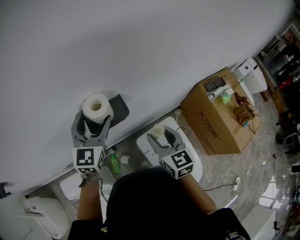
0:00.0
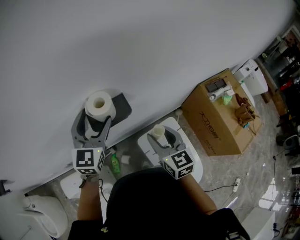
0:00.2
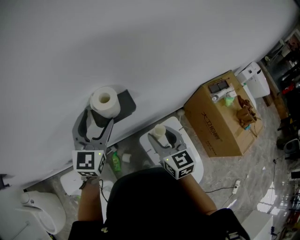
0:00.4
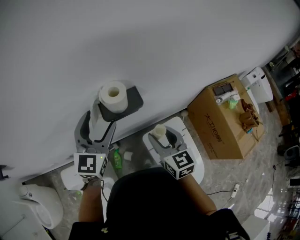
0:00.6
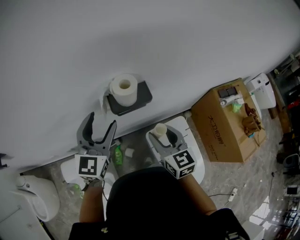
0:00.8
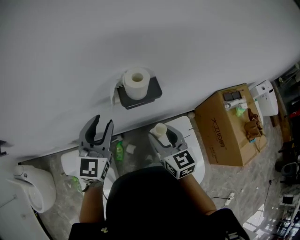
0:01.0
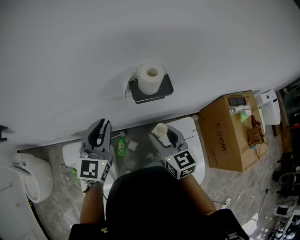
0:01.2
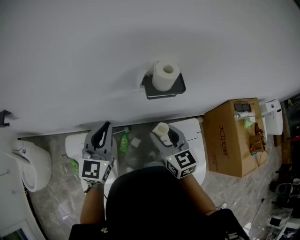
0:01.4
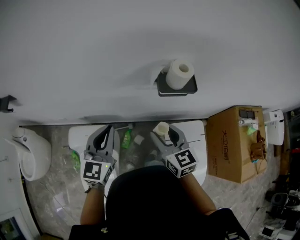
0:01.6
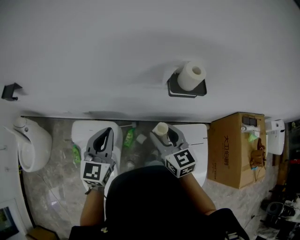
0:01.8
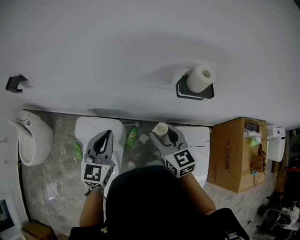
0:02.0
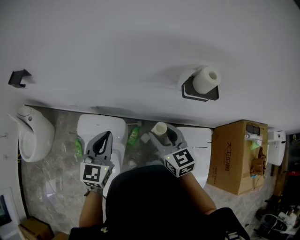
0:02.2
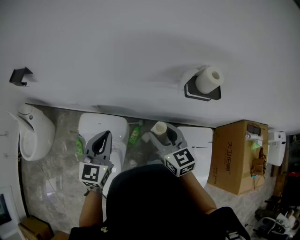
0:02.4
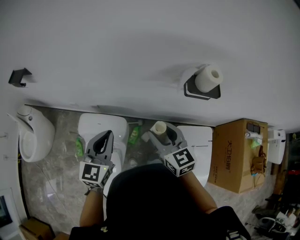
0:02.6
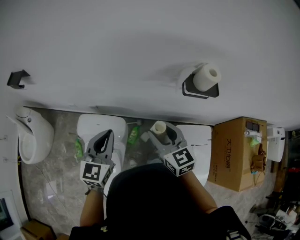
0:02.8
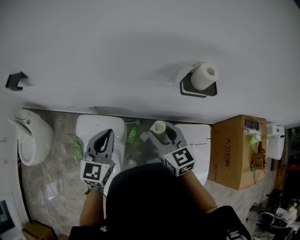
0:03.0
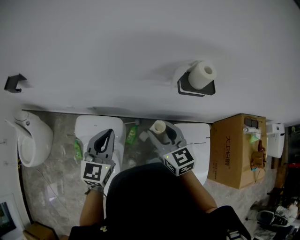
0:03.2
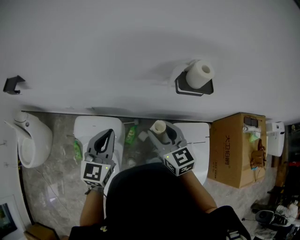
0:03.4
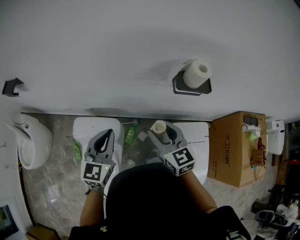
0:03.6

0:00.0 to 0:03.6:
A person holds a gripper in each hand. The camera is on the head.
0:00.0 to 0:01.8: The left gripper ends up approximately 35 cm from where it was, turns by approximately 30 degrees, and closes; the right gripper moves roughly 30 cm, and turns by approximately 30 degrees.
0:01.8 to 0:03.6: The left gripper moves approximately 10 cm to the left and comes back.

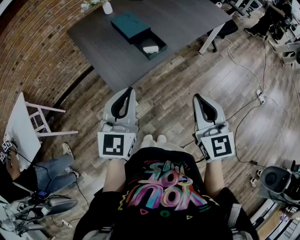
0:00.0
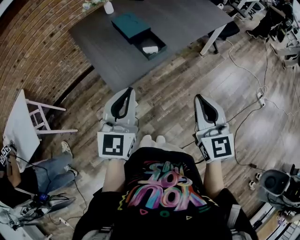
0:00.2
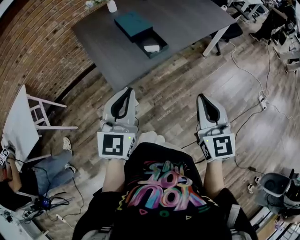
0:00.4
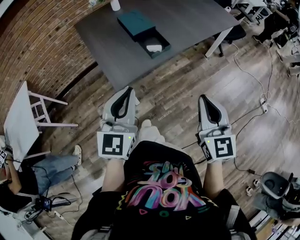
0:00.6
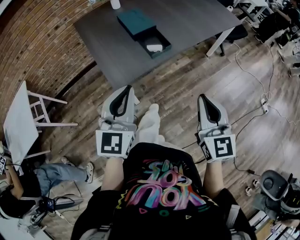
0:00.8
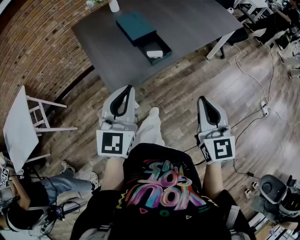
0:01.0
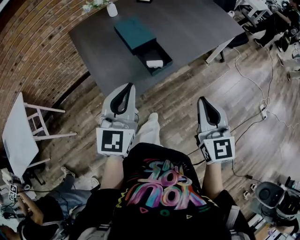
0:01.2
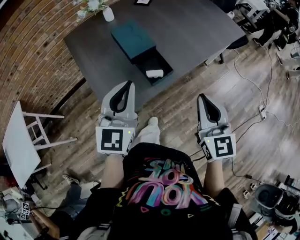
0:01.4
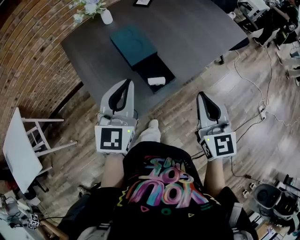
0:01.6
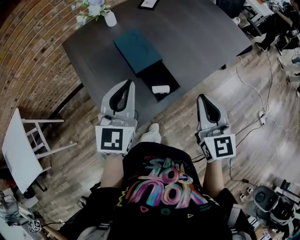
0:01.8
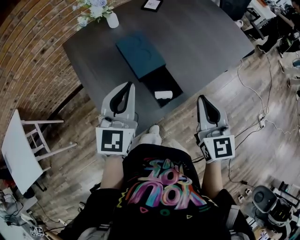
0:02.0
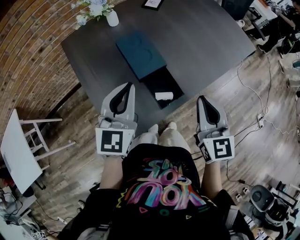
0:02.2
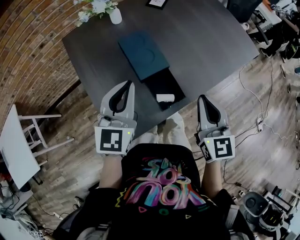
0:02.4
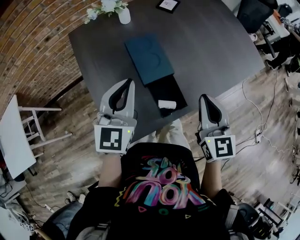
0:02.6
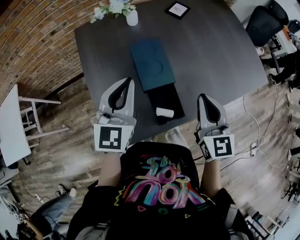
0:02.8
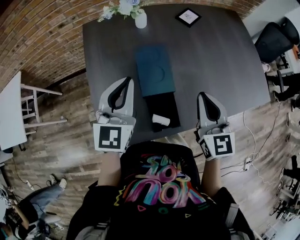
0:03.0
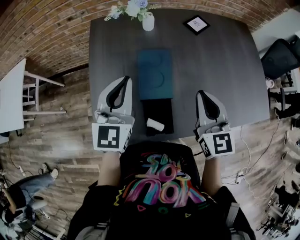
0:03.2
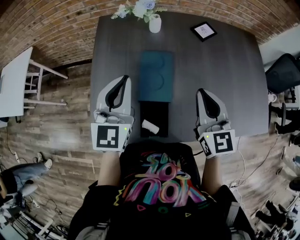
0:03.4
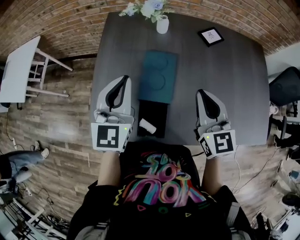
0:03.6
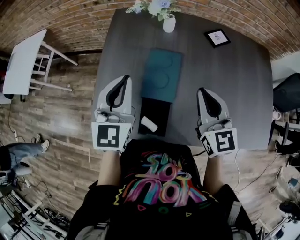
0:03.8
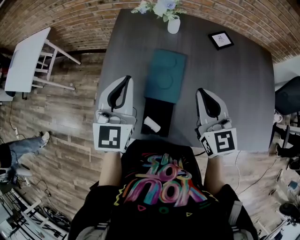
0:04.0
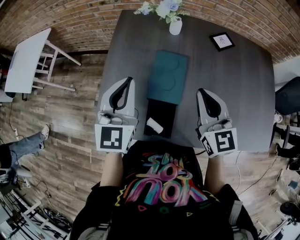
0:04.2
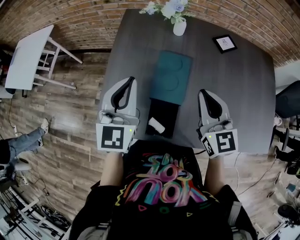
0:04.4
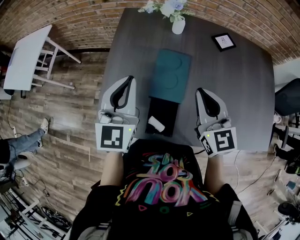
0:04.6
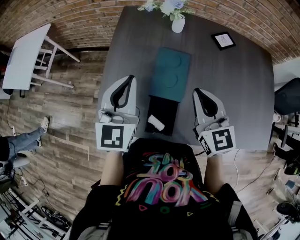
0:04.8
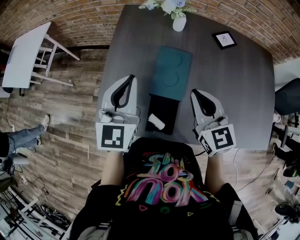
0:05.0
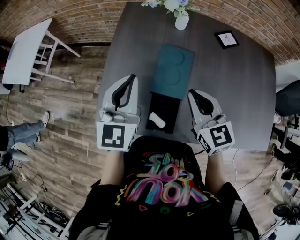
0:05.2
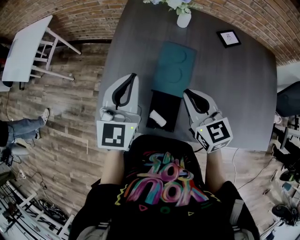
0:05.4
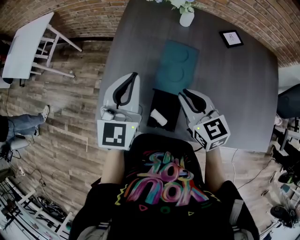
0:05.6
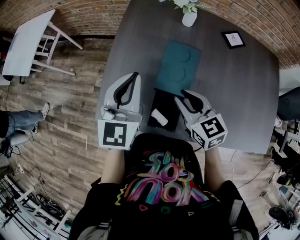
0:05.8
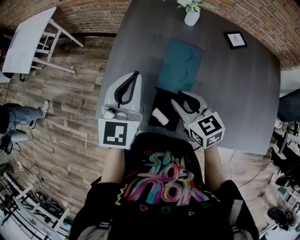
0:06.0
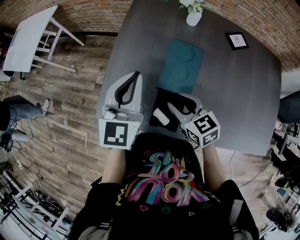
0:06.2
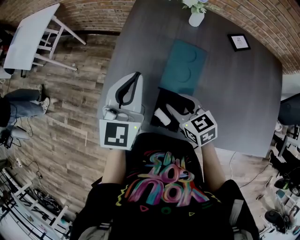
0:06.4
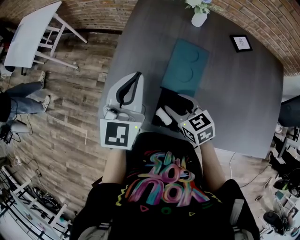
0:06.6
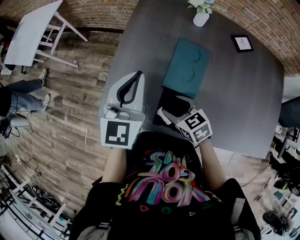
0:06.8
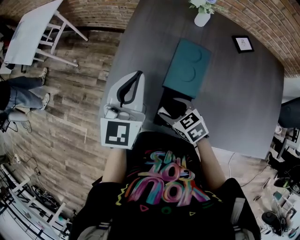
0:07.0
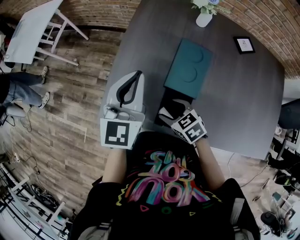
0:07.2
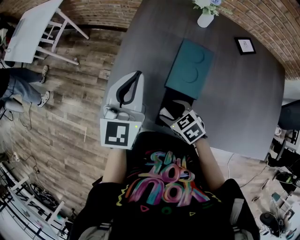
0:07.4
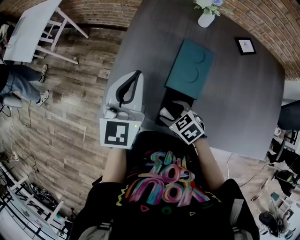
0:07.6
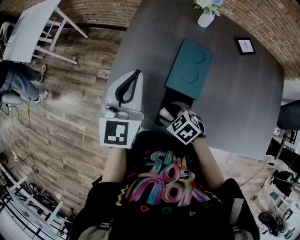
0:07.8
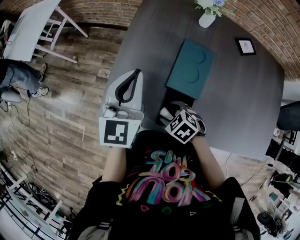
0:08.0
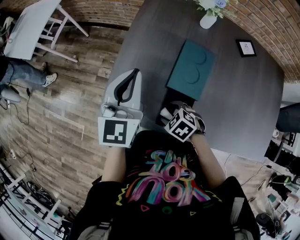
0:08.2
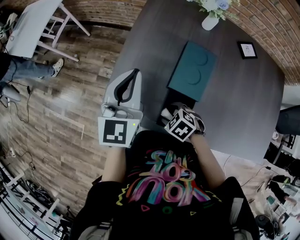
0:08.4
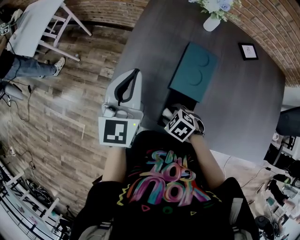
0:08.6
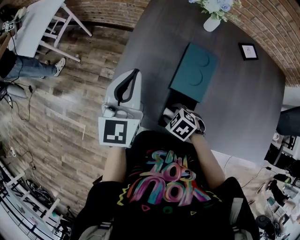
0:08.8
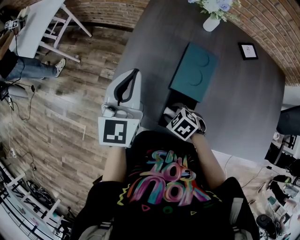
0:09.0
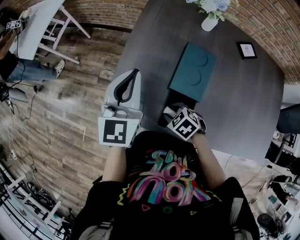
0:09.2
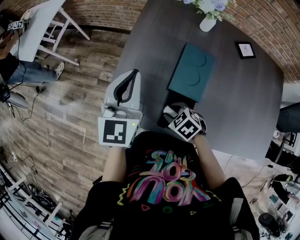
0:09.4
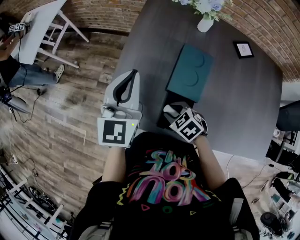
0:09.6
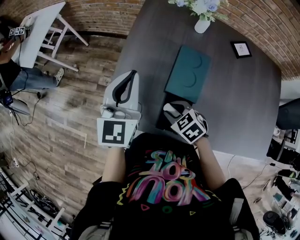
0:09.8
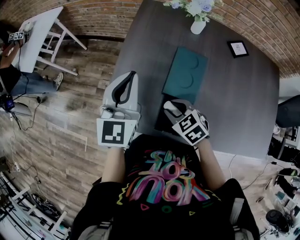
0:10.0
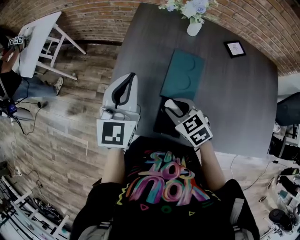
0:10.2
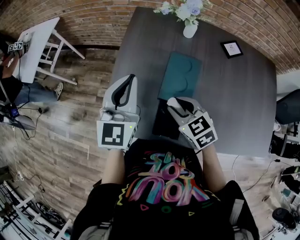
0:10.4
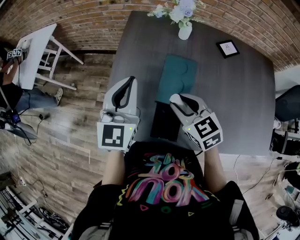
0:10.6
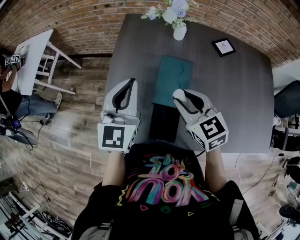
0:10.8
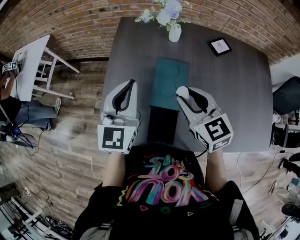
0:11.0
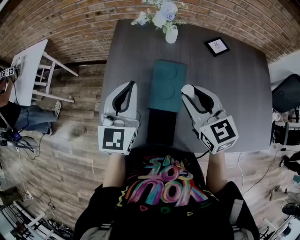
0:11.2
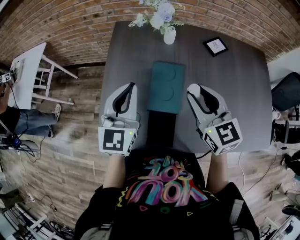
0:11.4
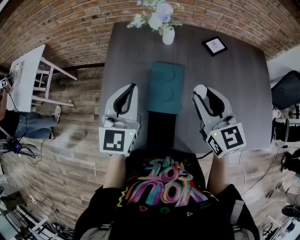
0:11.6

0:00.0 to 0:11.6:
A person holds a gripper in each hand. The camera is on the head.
0:00.0 to 0:01.4: Both grippers move forward, roughly 15 cm.
0:01.4 to 0:02.8: Both grippers travel together forward, some 20 cm.
0:02.8 to 0:04.4: The left gripper changes its angle by approximately 30 degrees; the right gripper changes place by approximately 15 cm, and swivels roughly 30 degrees.
0:04.4 to 0:05.8: The right gripper shifts roughly 15 cm downward and to the left, and swivels about 30 degrees.
0:05.8 to 0:07.2: The right gripper goes about 15 cm downward and to the left, changes its angle by roughly 30 degrees, and opens.
0:07.2 to 0:08.8: The right gripper shifts by some 5 cm, rotates some 20 degrees, and closes.
0:08.8 to 0:10.2: The right gripper shifts some 15 cm upward and forward, and changes its angle by approximately 30 degrees.
0:10.2 to 0:11.6: The left gripper shifts about 10 cm to the right, while the right gripper moves upward and to the right, about 25 cm, and tilts its fingers roughly 30 degrees upward.

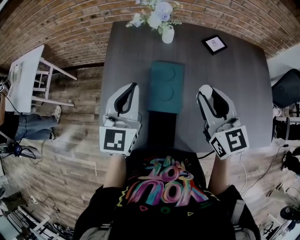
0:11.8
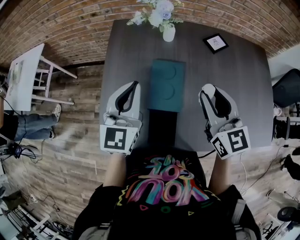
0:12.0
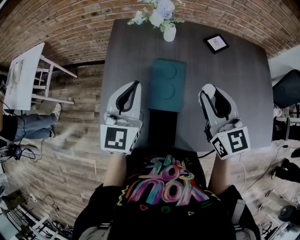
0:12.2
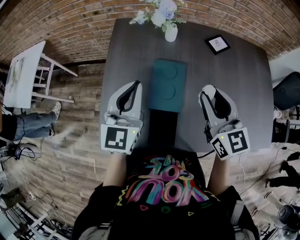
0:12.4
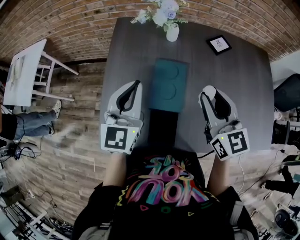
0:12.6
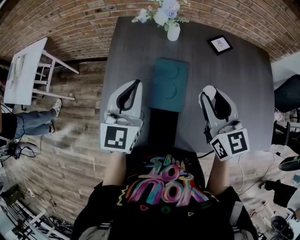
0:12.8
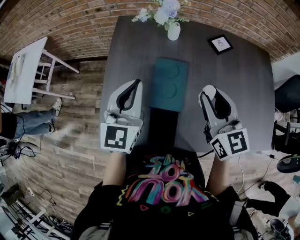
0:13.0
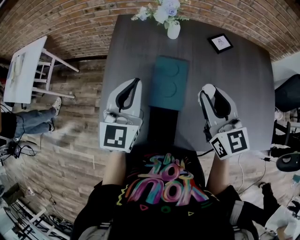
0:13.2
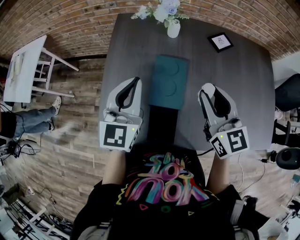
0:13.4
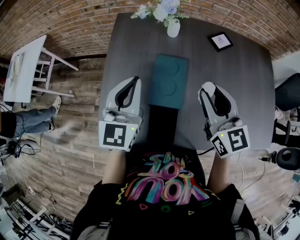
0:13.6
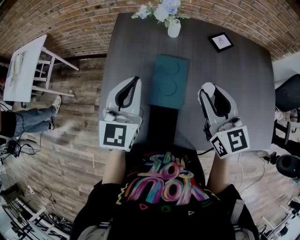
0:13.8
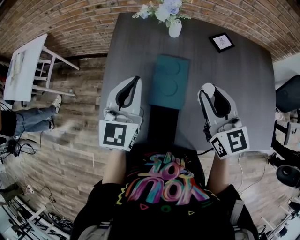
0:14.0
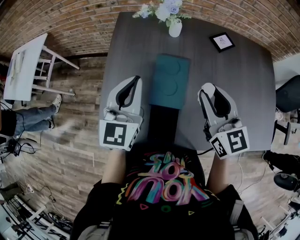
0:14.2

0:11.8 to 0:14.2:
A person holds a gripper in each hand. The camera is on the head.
0:11.8 to 0:14.2: Both grippers stay put.

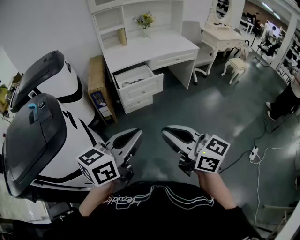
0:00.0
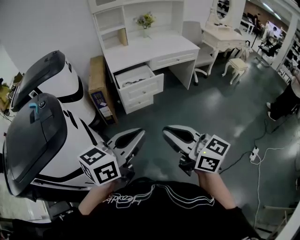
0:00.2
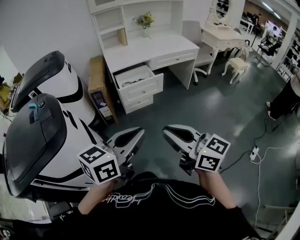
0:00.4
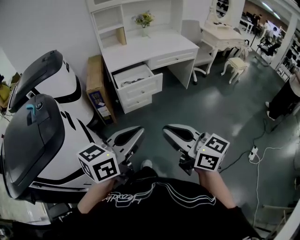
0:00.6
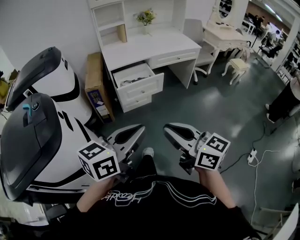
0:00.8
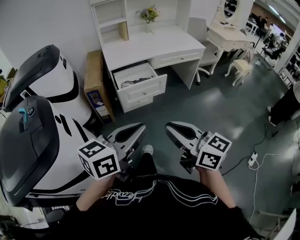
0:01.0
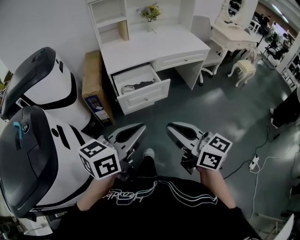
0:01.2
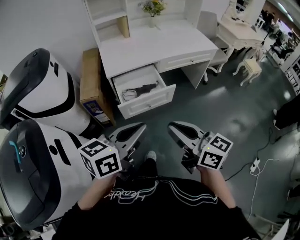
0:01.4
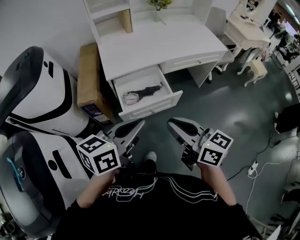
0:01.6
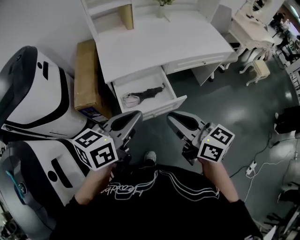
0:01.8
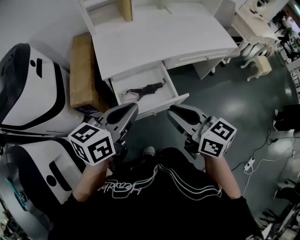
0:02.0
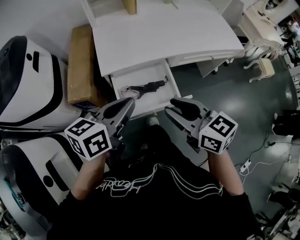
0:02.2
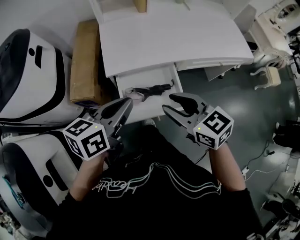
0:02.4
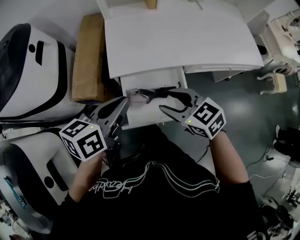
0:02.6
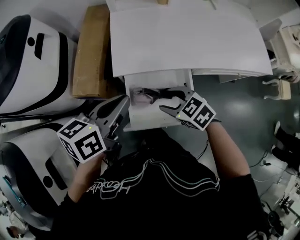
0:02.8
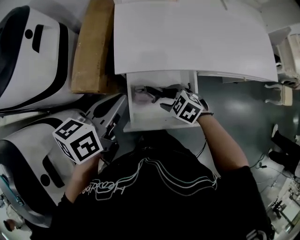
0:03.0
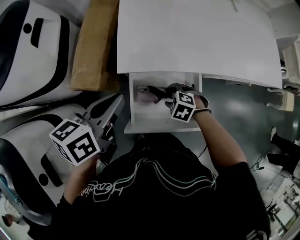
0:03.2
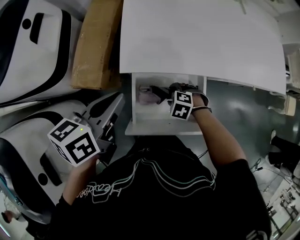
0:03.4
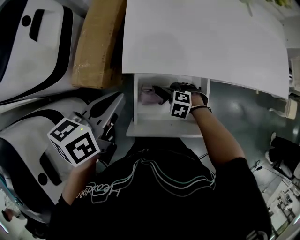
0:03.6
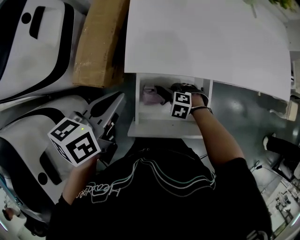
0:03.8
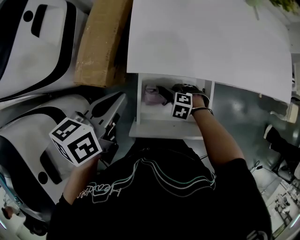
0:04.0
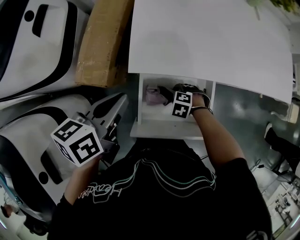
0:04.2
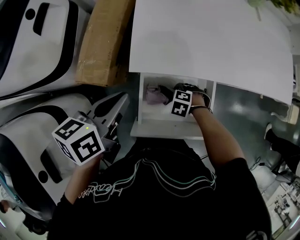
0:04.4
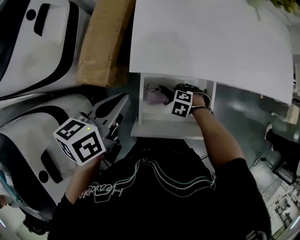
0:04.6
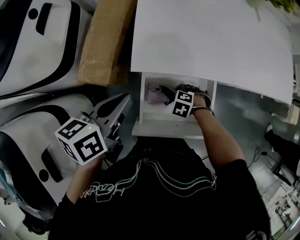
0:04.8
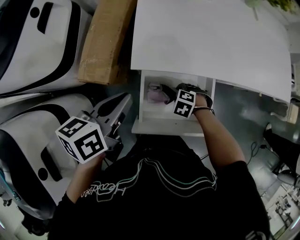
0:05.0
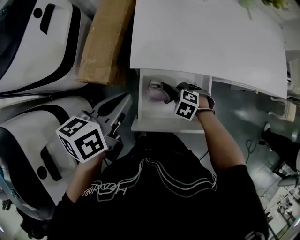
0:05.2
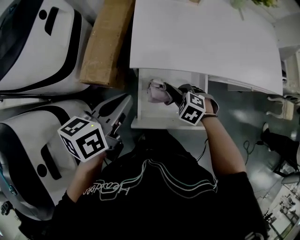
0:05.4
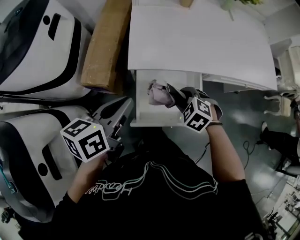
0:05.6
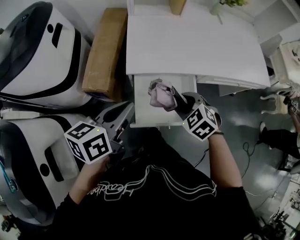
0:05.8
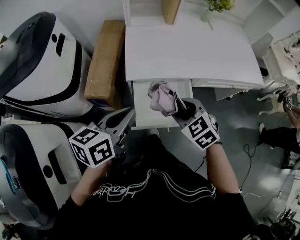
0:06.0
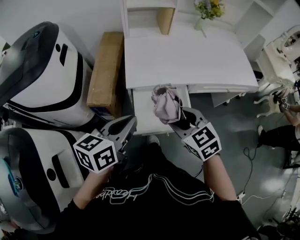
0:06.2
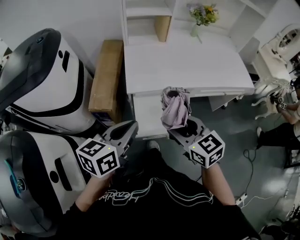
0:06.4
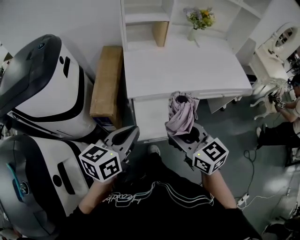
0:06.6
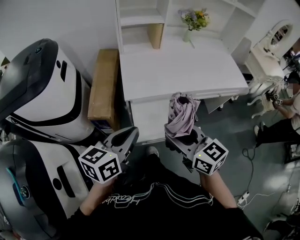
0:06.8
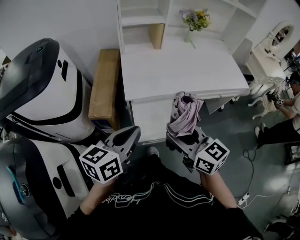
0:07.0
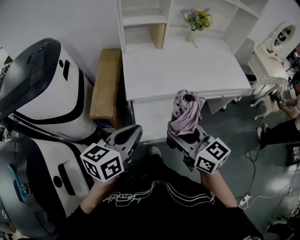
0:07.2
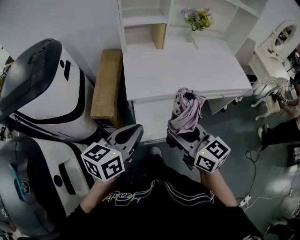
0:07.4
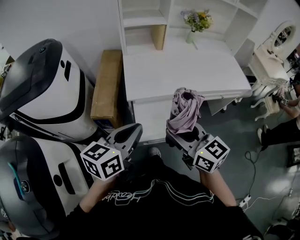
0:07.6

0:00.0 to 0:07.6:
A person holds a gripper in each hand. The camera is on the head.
0:00.0 to 0:01.6: Both grippers are carried forward, some 50 cm.
0:01.6 to 0:03.0: The left gripper ends up approximately 35 cm from where it was, and turns by approximately 30 degrees. Meanwhile the right gripper is displaced downward by approximately 30 cm, tips its fingers downward by roughly 60 degrees, and opens up.
0:03.0 to 0:04.6: The right gripper heads downward, covering some 15 cm, and changes its angle by some 30 degrees. Meanwhile the left gripper moves downward, roughly 5 cm.
0:04.6 to 0:06.0: The right gripper shifts approximately 30 cm upward, and tilts its fingers about 40 degrees upward, while the left gripper shifts by approximately 15 cm.
0:06.0 to 0:07.6: The right gripper shifts approximately 15 cm upward and backward, and angles its fingers upward, by approximately 40 degrees, while the left gripper is displaced upward and backward by approximately 10 cm.
